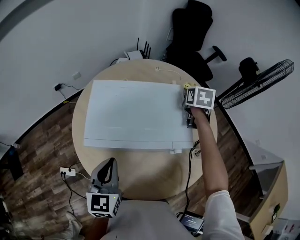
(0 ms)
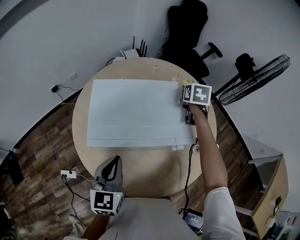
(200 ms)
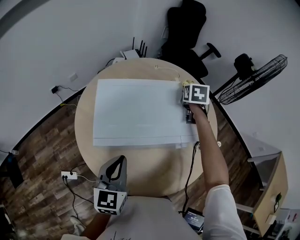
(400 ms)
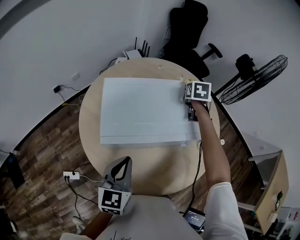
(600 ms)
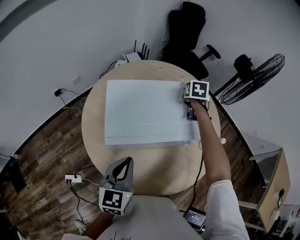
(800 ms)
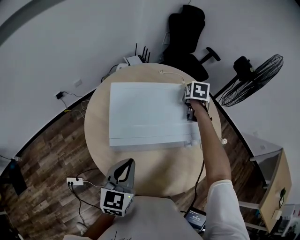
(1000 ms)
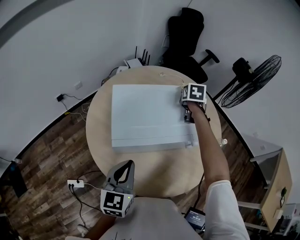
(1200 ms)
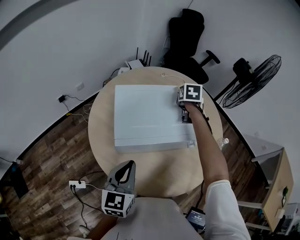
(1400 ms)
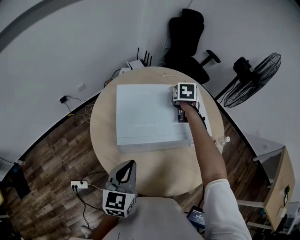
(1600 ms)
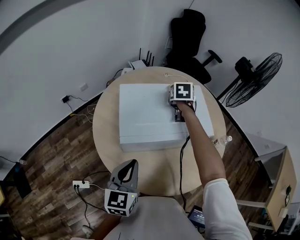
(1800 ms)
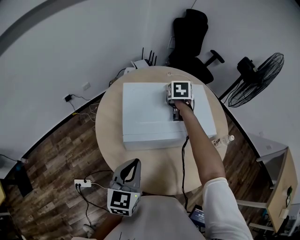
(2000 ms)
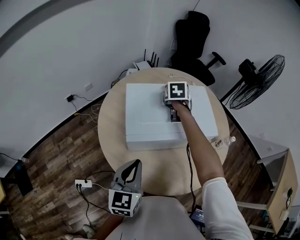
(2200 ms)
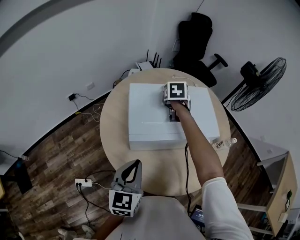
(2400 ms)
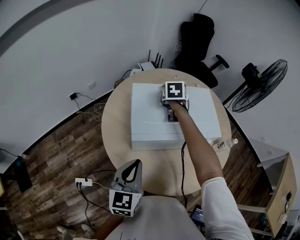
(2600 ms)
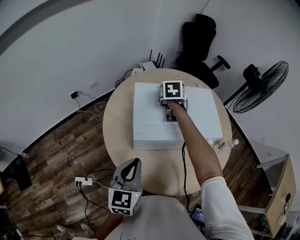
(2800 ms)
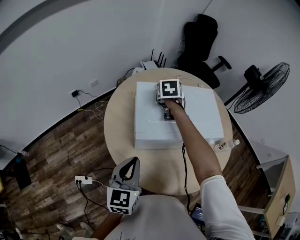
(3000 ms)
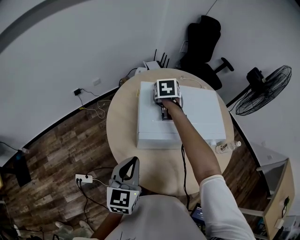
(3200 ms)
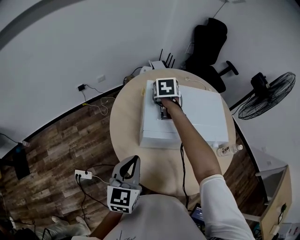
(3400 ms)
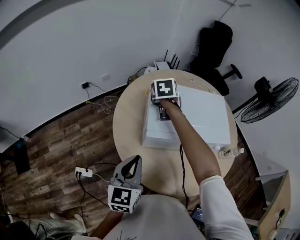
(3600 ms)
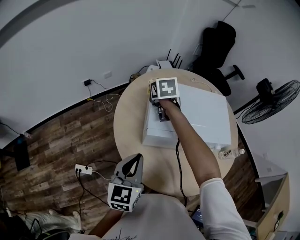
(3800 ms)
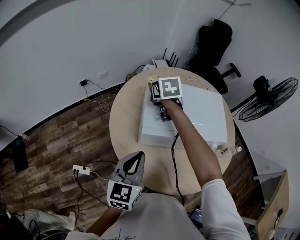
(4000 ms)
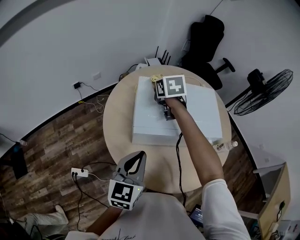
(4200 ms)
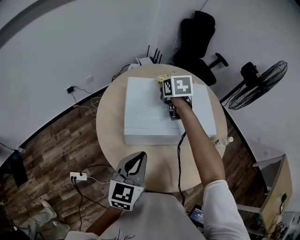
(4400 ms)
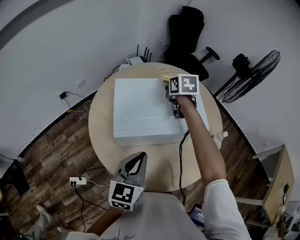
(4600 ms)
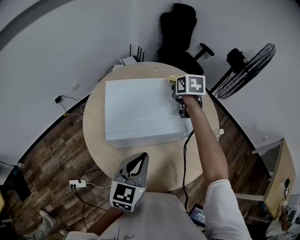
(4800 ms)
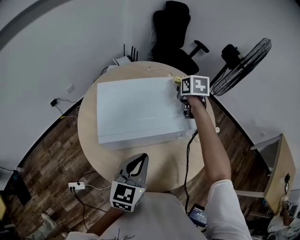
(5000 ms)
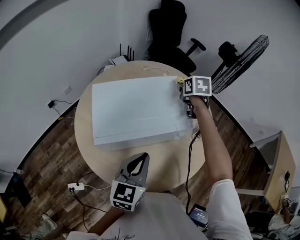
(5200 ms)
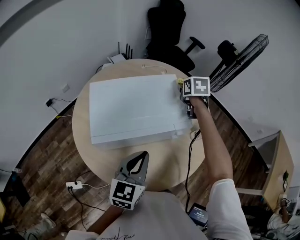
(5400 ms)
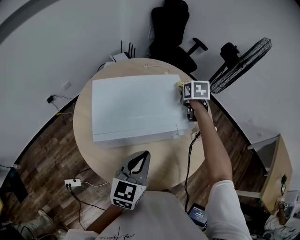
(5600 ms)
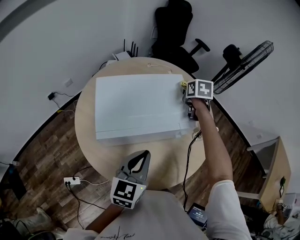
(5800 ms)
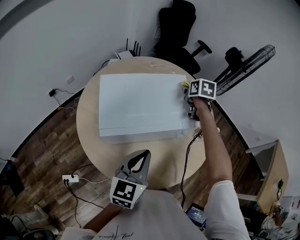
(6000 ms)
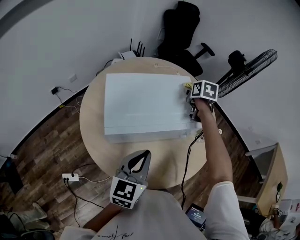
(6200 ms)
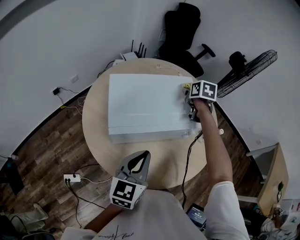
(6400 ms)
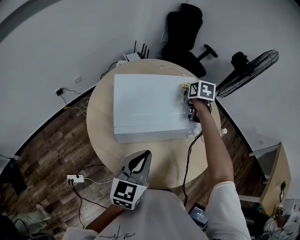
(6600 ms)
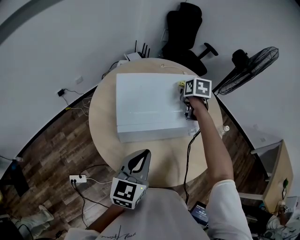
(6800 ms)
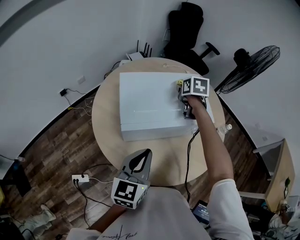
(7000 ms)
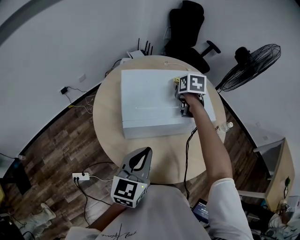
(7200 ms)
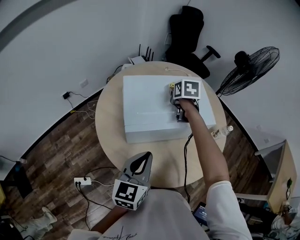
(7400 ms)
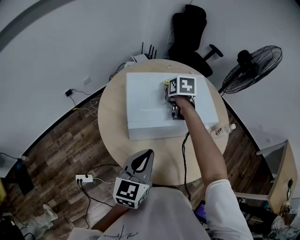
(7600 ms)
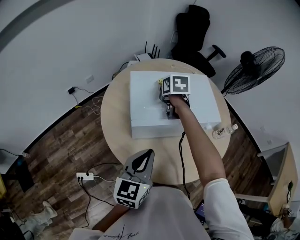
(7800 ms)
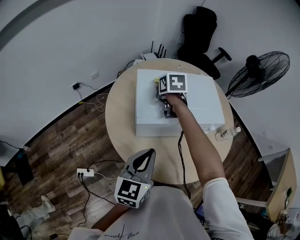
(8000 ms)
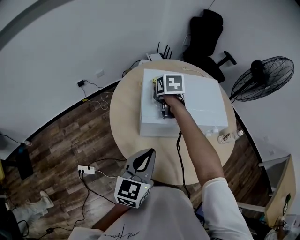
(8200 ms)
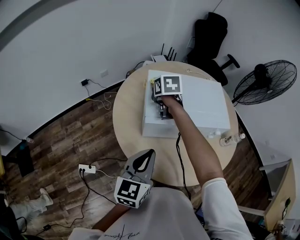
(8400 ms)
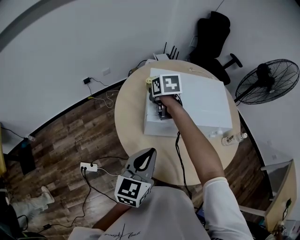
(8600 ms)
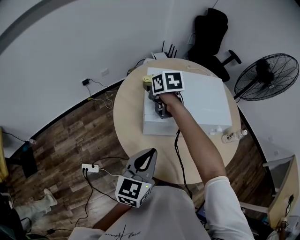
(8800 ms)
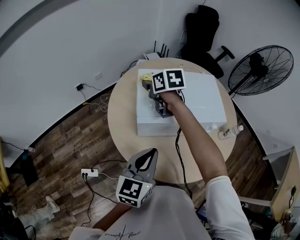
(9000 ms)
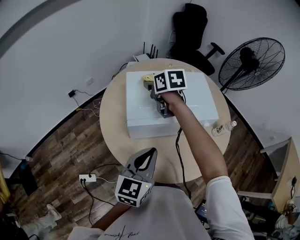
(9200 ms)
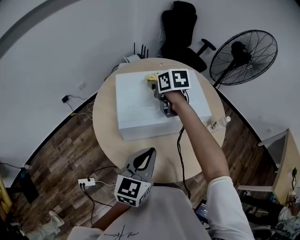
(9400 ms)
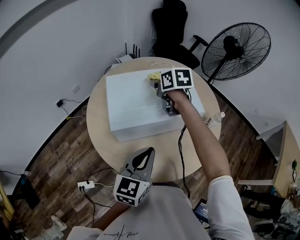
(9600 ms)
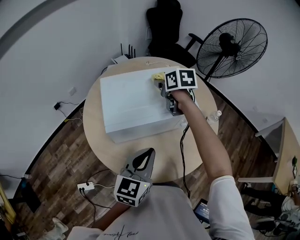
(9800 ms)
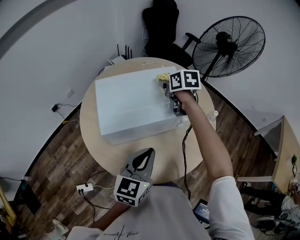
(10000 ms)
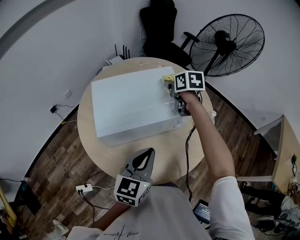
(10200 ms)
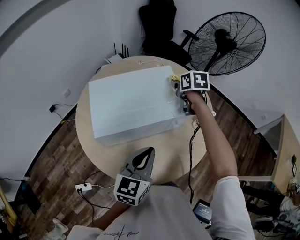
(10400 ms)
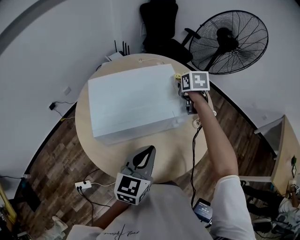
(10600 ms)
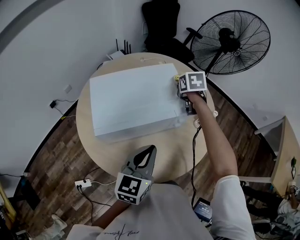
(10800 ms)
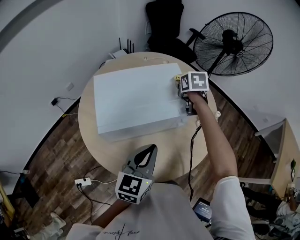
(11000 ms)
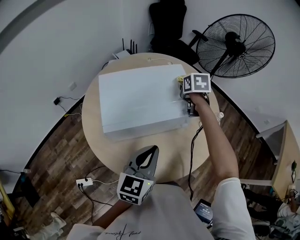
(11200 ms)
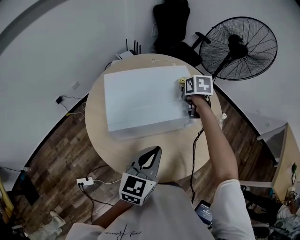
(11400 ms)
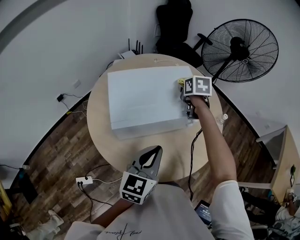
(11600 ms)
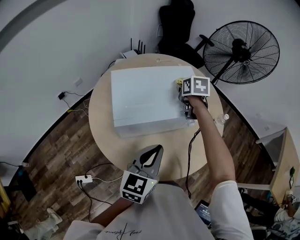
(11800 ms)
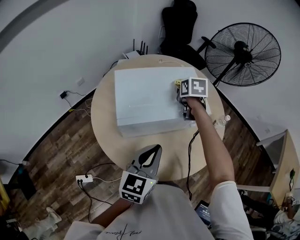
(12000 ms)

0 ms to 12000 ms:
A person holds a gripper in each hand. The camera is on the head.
0 ms to 1600 ms: The left gripper moves backward and to the left, approximately 10 cm, while the right gripper travels to the left and backward by roughly 15 cm.
1600 ms to 3000 ms: The left gripper moves to the left, approximately 5 cm. The right gripper goes about 15 cm to the left.
3000 ms to 4400 ms: The left gripper travels to the right by some 5 cm. Meanwhile the right gripper goes to the left and returns, roughly 15 cm each way.
4400 ms to 6000 ms: The right gripper is displaced to the right by roughly 25 cm, and turns by roughly 20 degrees, while the left gripper is displaced to the right by approximately 10 cm.
6000 ms to 7600 ms: The left gripper heads to the left and backward, covering some 10 cm, while the right gripper moves to the left and backward, some 20 cm.
7600 ms to 9000 ms: The right gripper travels to the left by roughly 15 cm, and changes its angle by some 20 degrees.
9000 ms to 10400 ms: The right gripper heads to the right, covering approximately 40 cm, and turns by some 30 degrees; the left gripper shifts about 15 cm to the right.
10400 ms to 12000 ms: The left gripper moves to the left, some 5 cm; the right gripper goes some 10 cm to the left and backward.

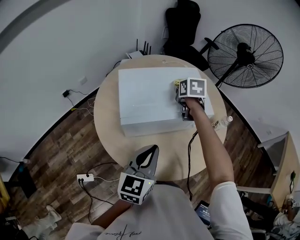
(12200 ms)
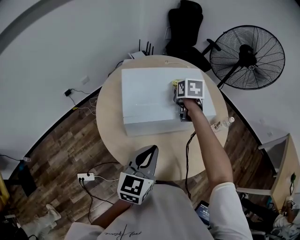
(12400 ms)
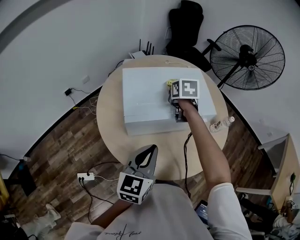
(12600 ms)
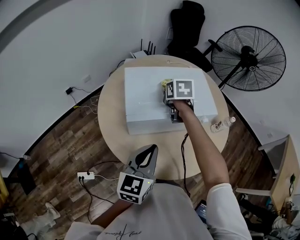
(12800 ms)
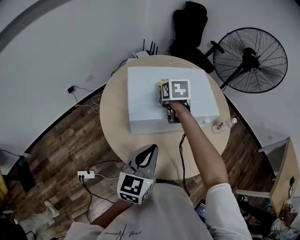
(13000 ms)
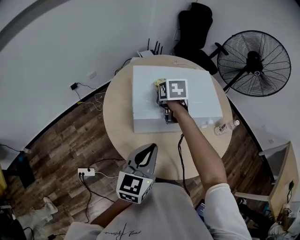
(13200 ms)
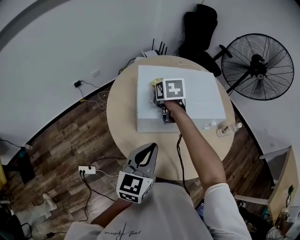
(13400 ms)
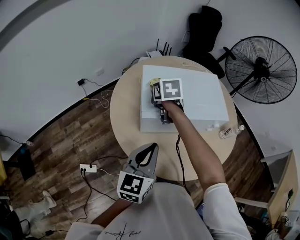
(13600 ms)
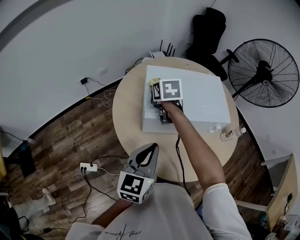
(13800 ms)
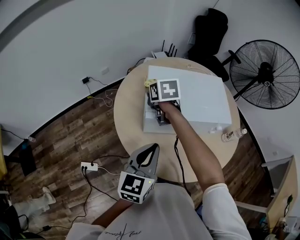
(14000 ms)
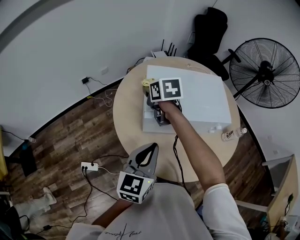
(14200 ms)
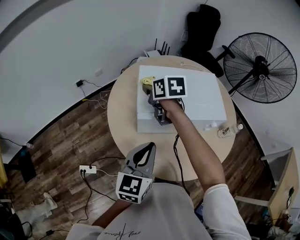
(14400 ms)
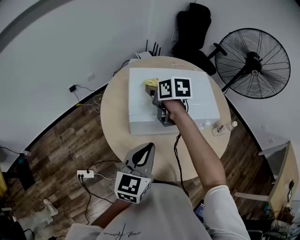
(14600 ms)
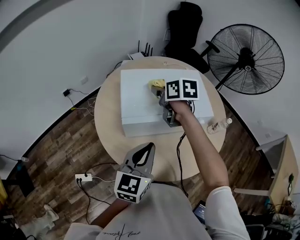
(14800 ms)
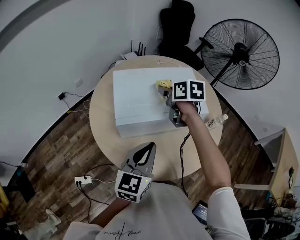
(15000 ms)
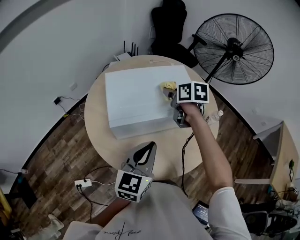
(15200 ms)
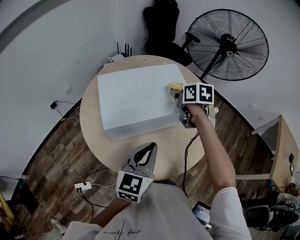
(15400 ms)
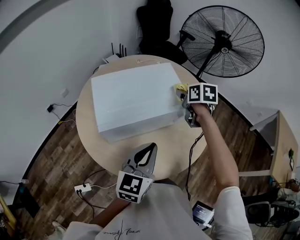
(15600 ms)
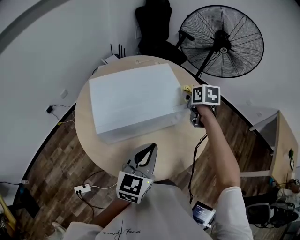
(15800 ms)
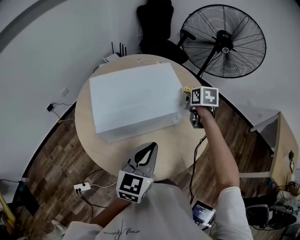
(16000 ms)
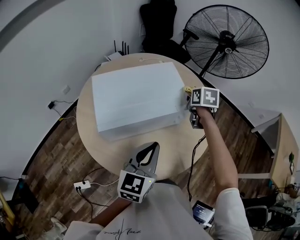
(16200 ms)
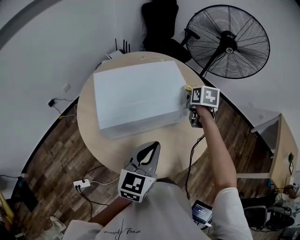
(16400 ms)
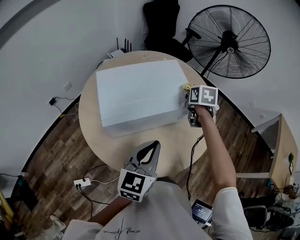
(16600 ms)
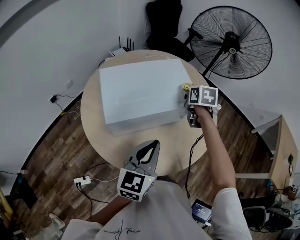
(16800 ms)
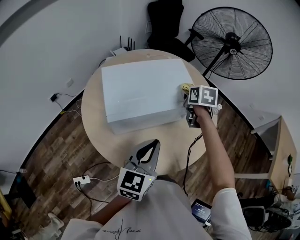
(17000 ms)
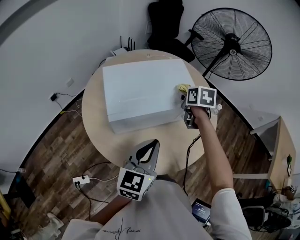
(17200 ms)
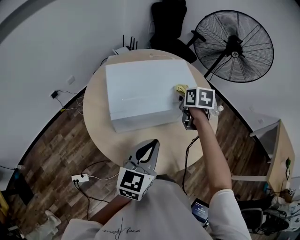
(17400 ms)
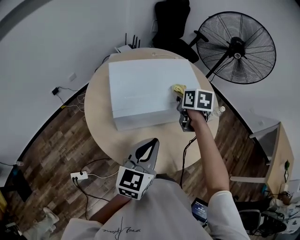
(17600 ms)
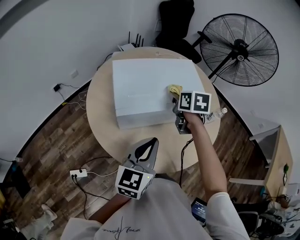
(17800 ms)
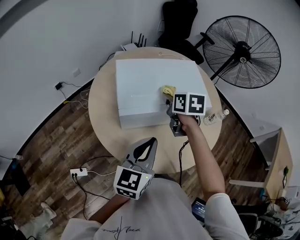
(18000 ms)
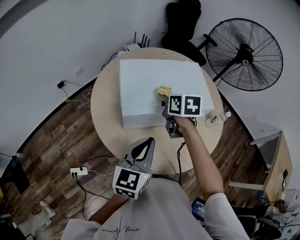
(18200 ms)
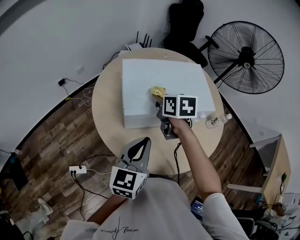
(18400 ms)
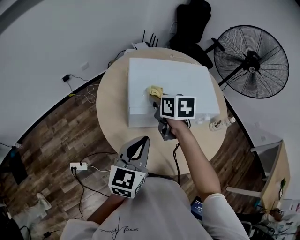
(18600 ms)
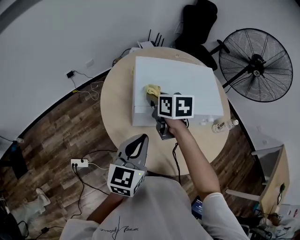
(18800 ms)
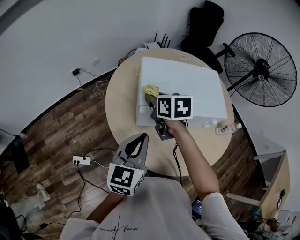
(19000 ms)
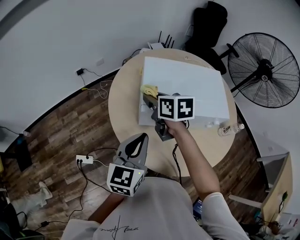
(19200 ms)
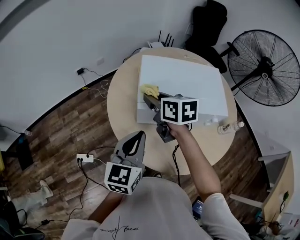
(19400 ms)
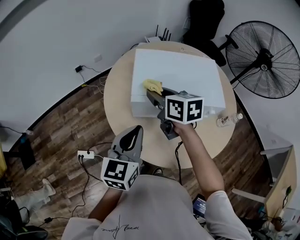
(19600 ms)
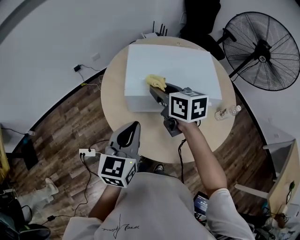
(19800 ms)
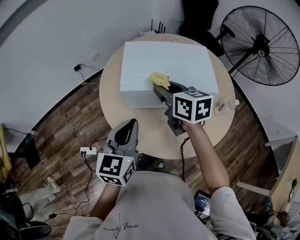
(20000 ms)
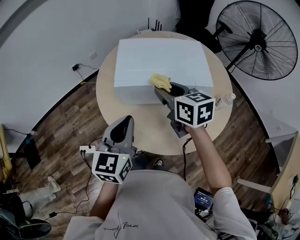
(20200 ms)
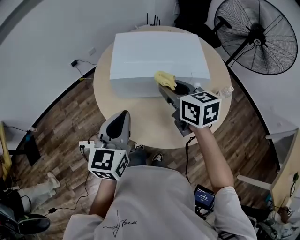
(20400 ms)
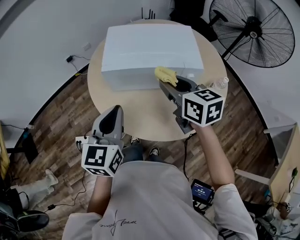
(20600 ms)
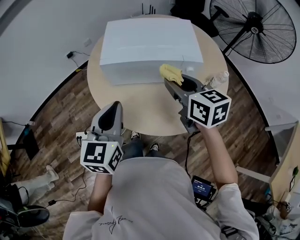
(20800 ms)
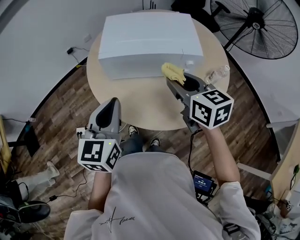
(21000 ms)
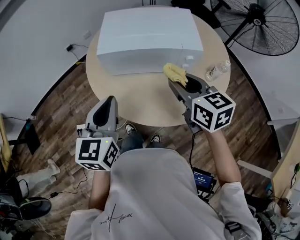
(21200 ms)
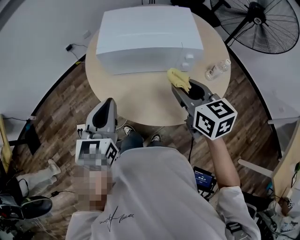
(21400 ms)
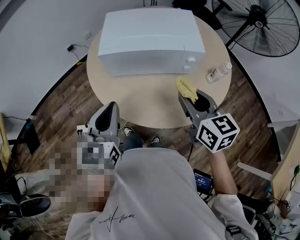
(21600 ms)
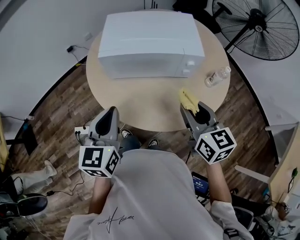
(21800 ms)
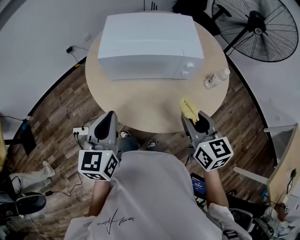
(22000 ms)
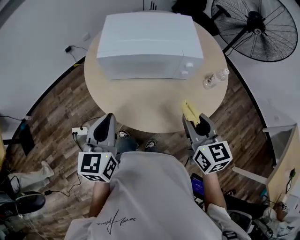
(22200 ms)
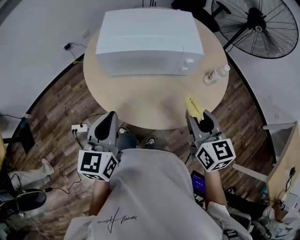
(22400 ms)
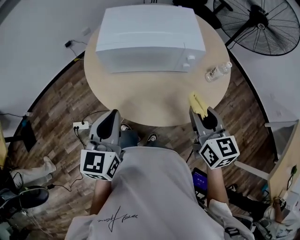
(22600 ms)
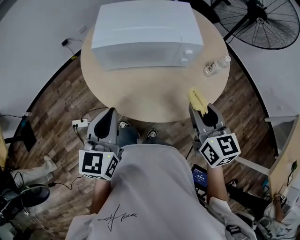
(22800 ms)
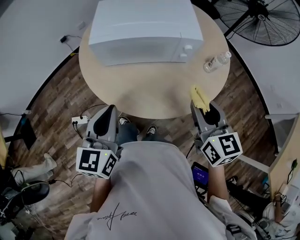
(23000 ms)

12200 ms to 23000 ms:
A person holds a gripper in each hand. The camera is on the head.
12200 ms to 13800 ms: The right gripper shifts approximately 25 cm to the left. The left gripper shifts roughly 10 cm to the left.
13800 ms to 15200 ms: The right gripper shifts approximately 25 cm to the right, and changes its angle by about 20 degrees, while the left gripper moves to the right, about 10 cm.
15200 ms to 16800 ms: The right gripper moves to the right, roughly 10 cm, and turns by approximately 20 degrees.
16800 ms to 18400 ms: The left gripper shifts roughly 10 cm to the left. Meanwhile the right gripper travels to the left by about 25 cm, and rotates some 20 degrees.
18400 ms to 20000 ms: The right gripper travels backward and upward by about 10 cm, goes to the left and returns, some 10 cm each way, and turns by approximately 20 degrees.
20000 ms to 21400 ms: The right gripper goes about 20 cm backward and to the right. Meanwhile the left gripper is displaced backward by roughly 10 cm.
21400 ms to 23000 ms: The right gripper moves backward and to the right, about 10 cm.

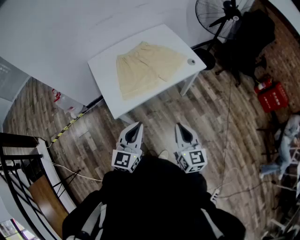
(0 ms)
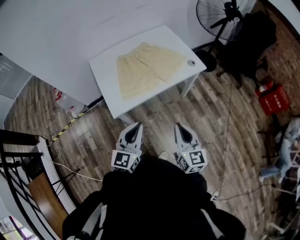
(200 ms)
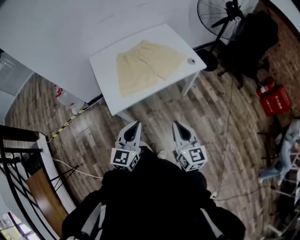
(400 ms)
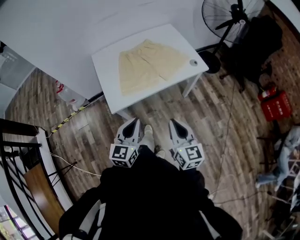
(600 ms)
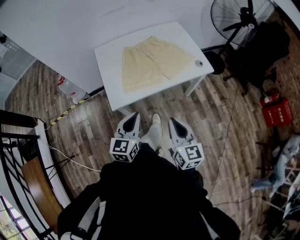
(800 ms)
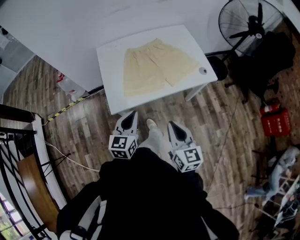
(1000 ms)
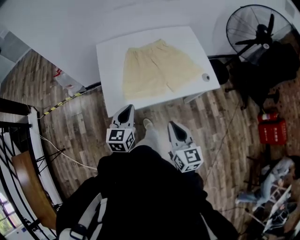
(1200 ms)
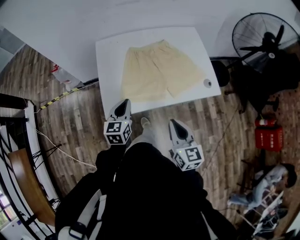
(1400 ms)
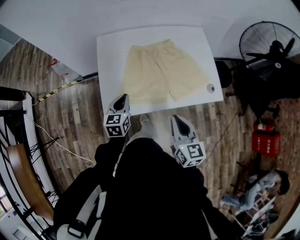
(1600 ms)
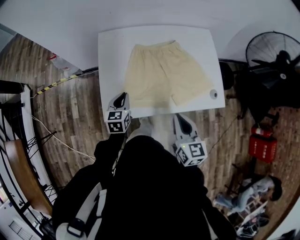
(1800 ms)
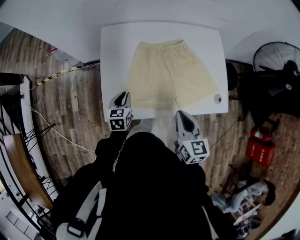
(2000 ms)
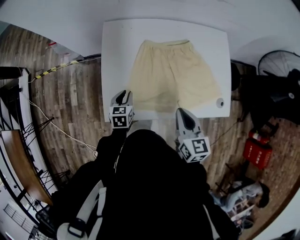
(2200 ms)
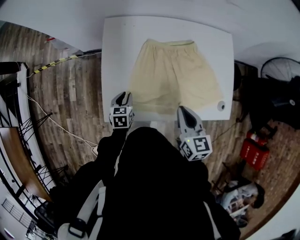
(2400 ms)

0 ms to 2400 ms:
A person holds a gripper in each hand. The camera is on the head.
0 ms to 1200 ms: The right gripper goes some 10 cm forward; the left gripper is displaced forward and downward by some 15 cm, and changes its angle by roughly 30 degrees.
1200 ms to 2400 ms: The left gripper travels downward and forward by about 25 cm, and tilts its fingers some 30 degrees downward. The right gripper heads forward, covering some 25 cm, and swivels about 20 degrees.
